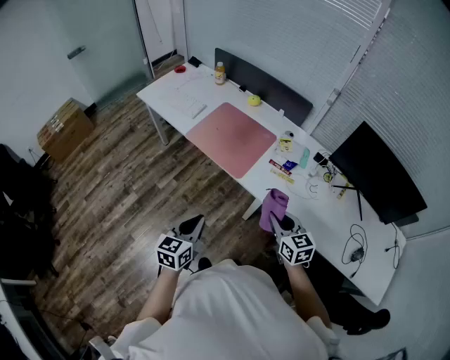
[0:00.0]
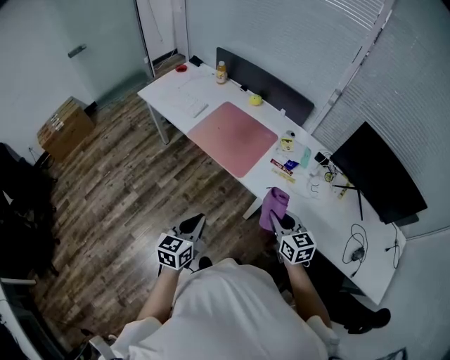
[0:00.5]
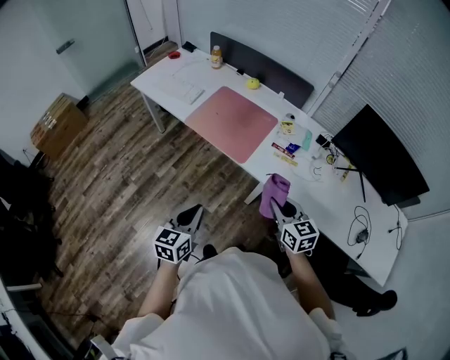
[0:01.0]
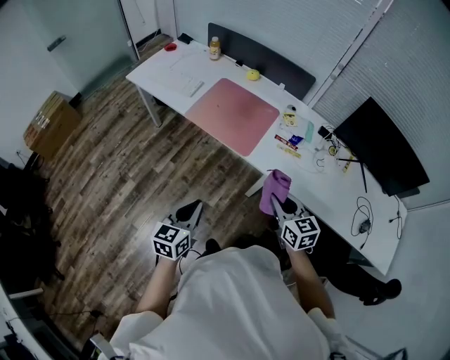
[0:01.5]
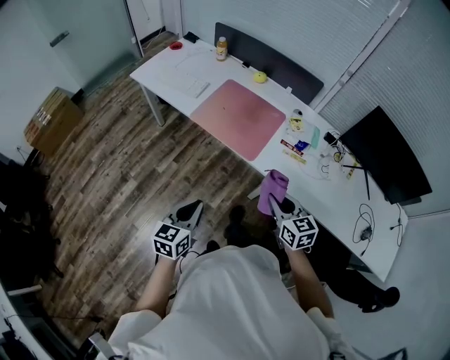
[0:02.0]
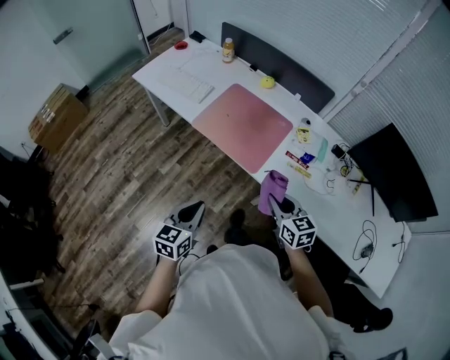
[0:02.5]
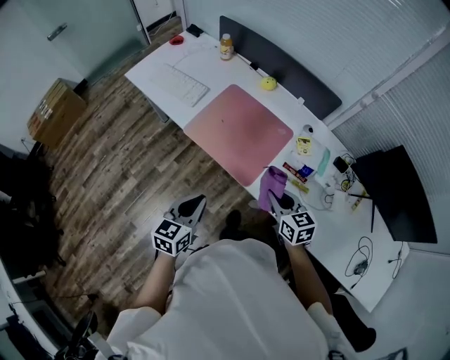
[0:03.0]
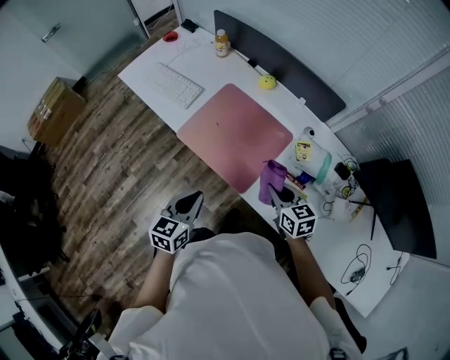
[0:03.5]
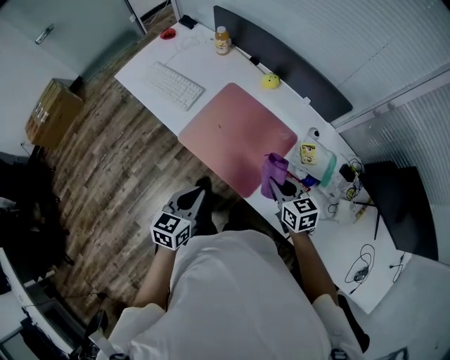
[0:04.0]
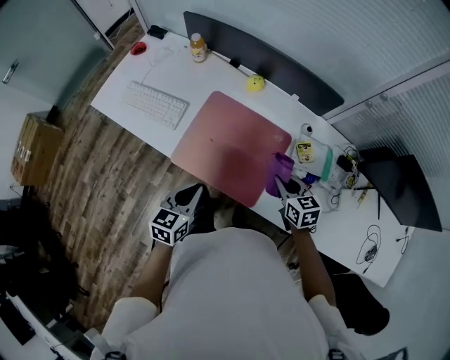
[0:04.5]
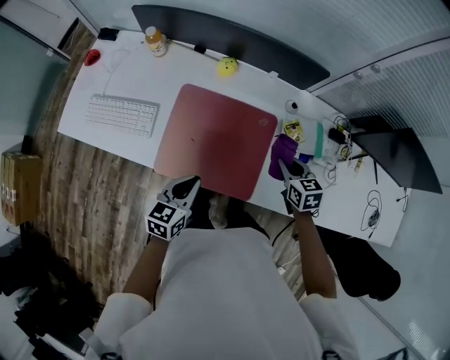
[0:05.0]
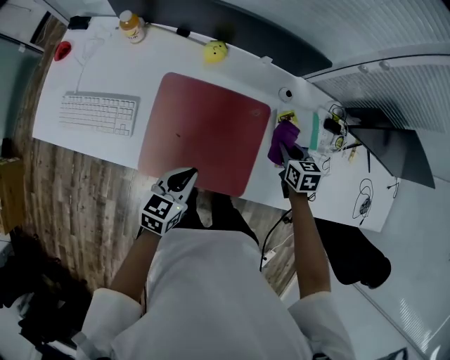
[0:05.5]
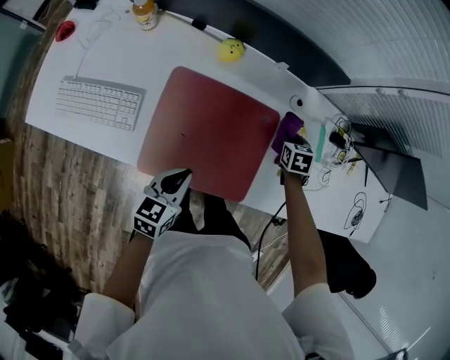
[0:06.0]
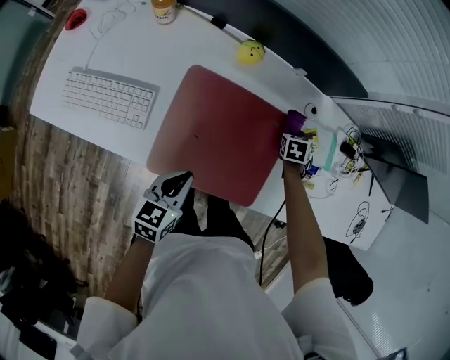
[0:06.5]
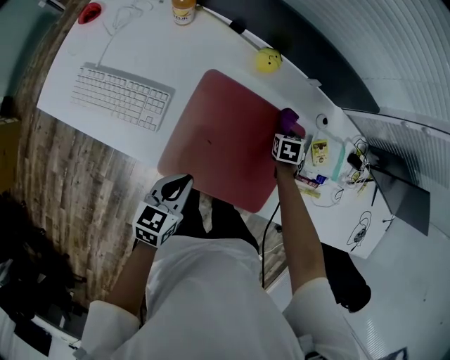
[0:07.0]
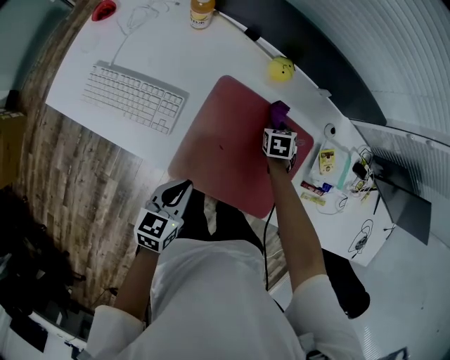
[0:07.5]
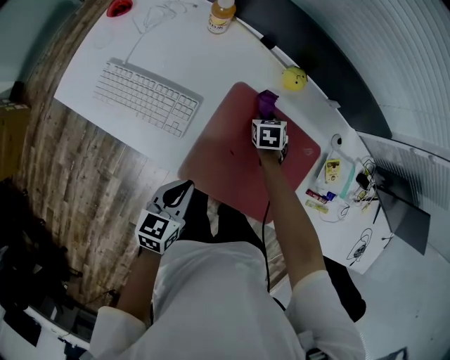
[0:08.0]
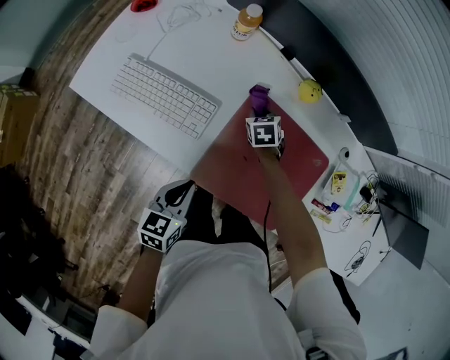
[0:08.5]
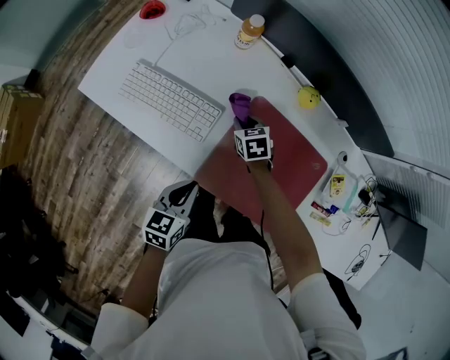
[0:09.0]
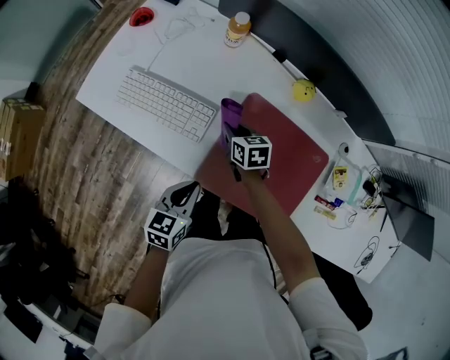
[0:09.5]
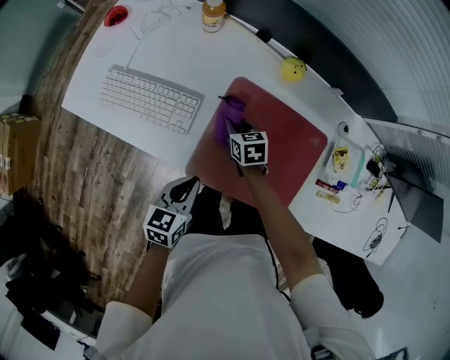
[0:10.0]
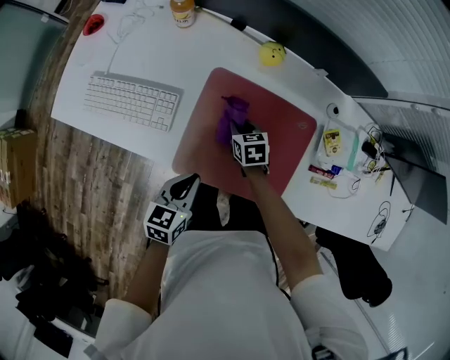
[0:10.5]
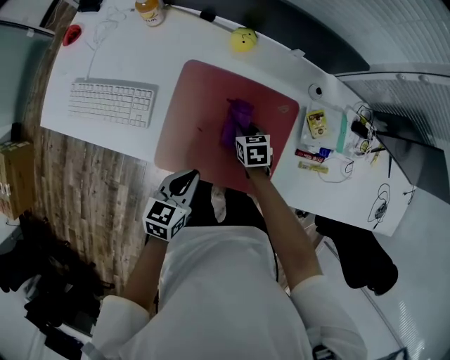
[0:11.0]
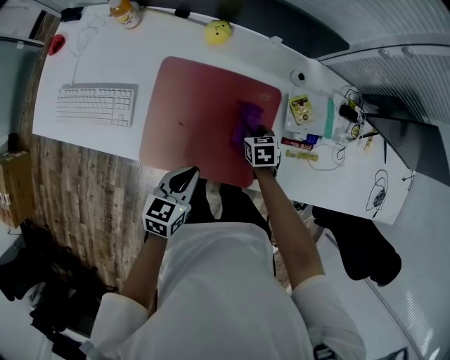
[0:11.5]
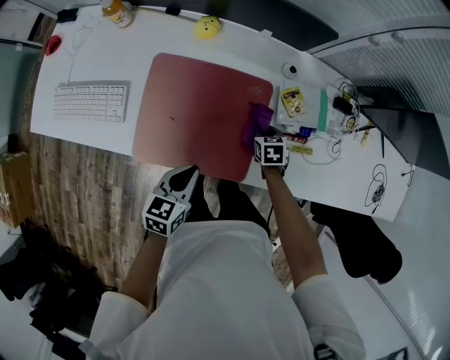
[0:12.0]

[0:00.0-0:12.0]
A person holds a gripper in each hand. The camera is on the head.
0:00.0 to 0:02.0: Both grippers move to the left, approximately 10 cm.
0:02.0 to 0:04.0: Both grippers move forward, roughly 30 cm.
0:04.0 to 0:06.0: The right gripper shifts by approximately 25 cm, and changes its angle by some 50 degrees, while the left gripper shifts by roughly 20 cm, and swivels approximately 30 degrees.
0:06.0 to 0:08.0: The left gripper shifts by about 15 cm, while the right gripper moves some 30 cm.
0:08.0 to 0:10.0: The right gripper goes roughly 15 cm to the left and backward, and swivels roughly 20 degrees.
0:10.0 to 0:12.0: The left gripper heads to the right, covering about 20 cm. The right gripper is displaced to the right by roughly 35 cm, and turns by approximately 20 degrees.

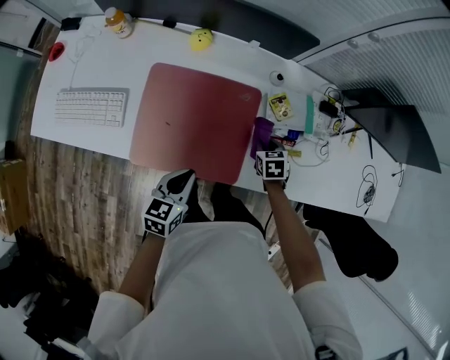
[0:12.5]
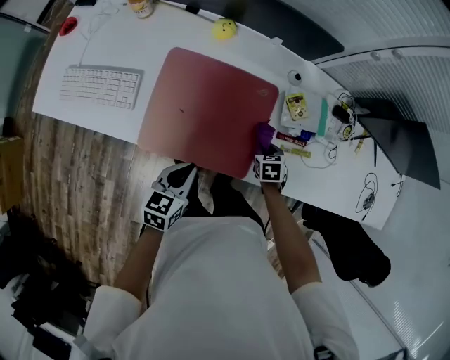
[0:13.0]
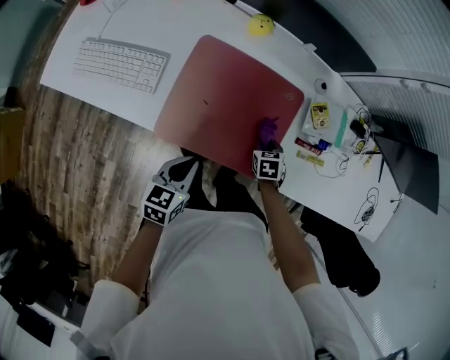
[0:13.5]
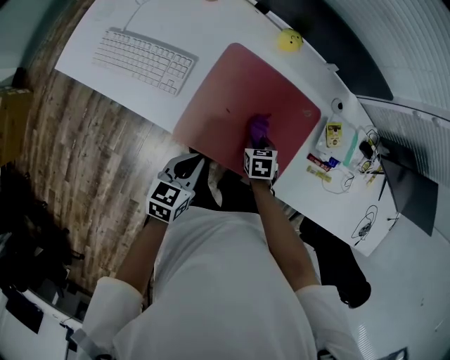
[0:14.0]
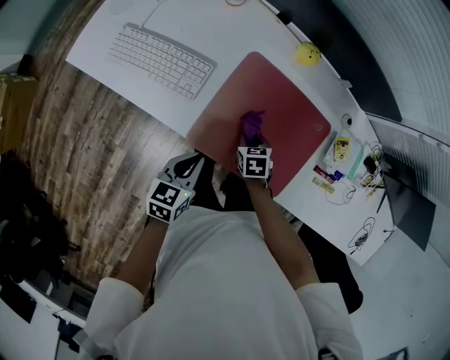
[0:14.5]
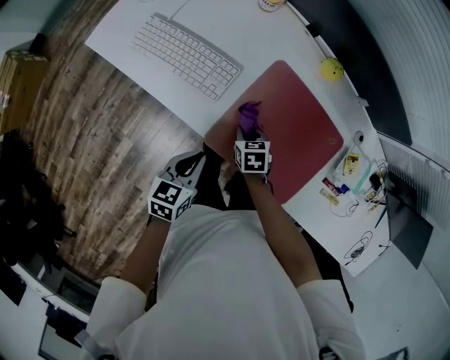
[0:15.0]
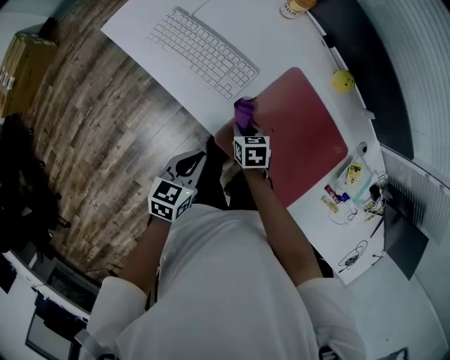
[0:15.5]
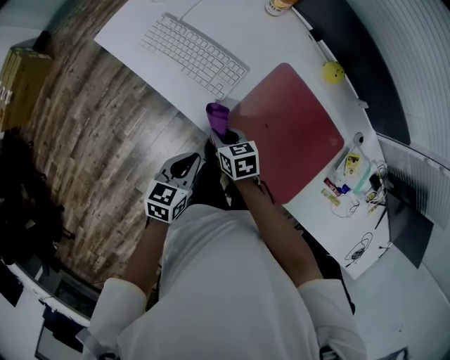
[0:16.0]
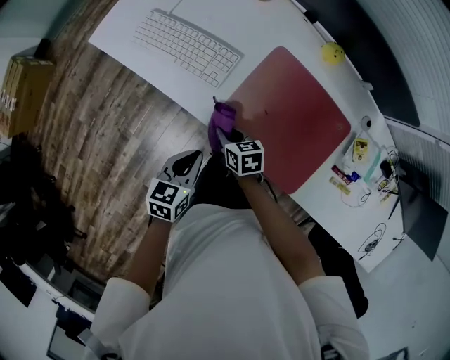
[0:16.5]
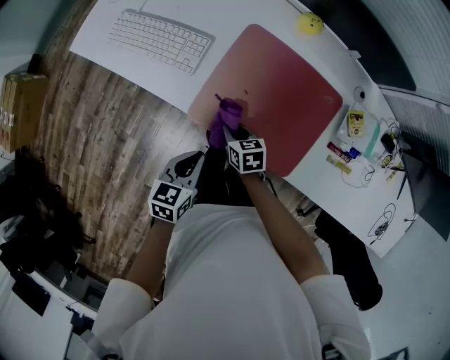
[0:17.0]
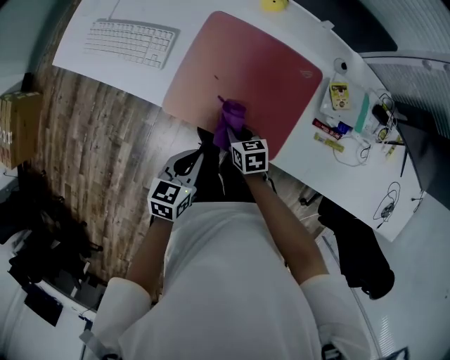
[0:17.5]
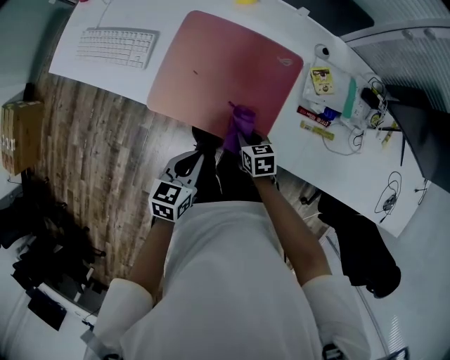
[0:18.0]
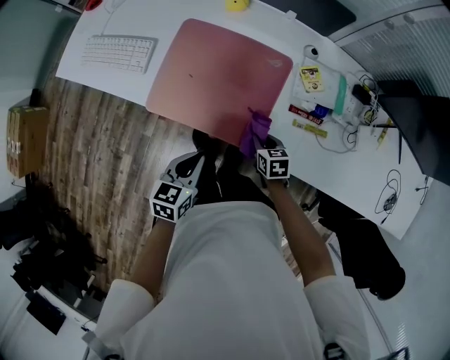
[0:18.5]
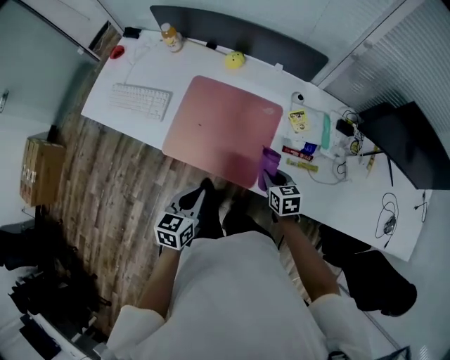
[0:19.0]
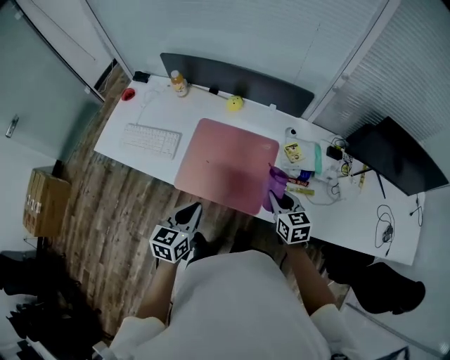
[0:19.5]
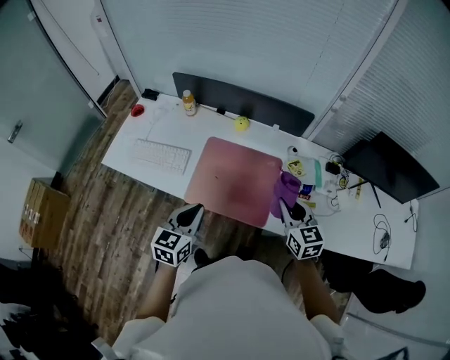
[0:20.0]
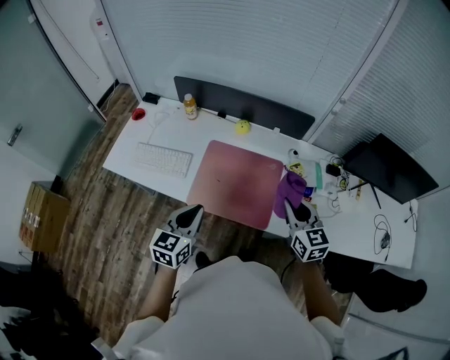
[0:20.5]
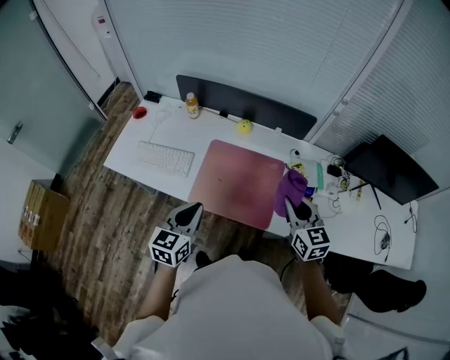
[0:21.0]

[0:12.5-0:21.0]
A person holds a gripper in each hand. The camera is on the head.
0:12.5 to 0:14.5: The left gripper is displaced to the left by roughly 20 cm, while the right gripper shifts about 30 cm to the left.
0:14.5 to 0:16.5: The left gripper heads to the left, covering some 5 cm, while the right gripper heads to the left, covering about 15 cm, and changes its angle by approximately 30 degrees.
0:16.5 to 0:19.0: The right gripper is displaced to the right by approximately 40 cm, and changes its angle by roughly 20 degrees, while the left gripper goes approximately 25 cm to the right and backward.
0:19.0 to 0:21.0: The left gripper is displaced upward and to the left by roughly 20 cm. Meanwhile the right gripper heads upward, covering some 30 cm, and changes its angle by some 30 degrees.

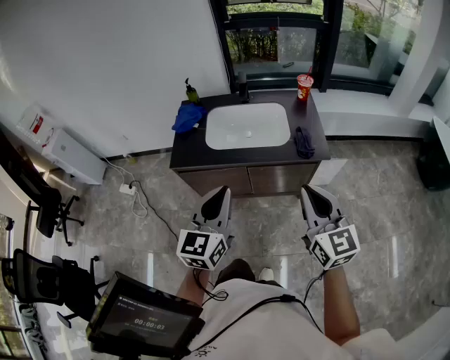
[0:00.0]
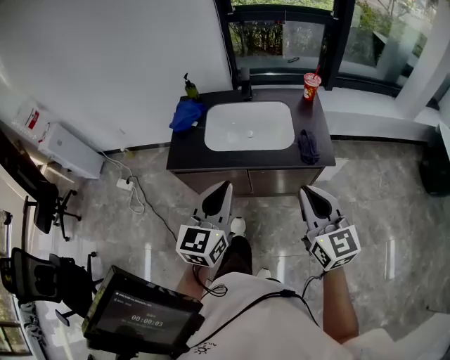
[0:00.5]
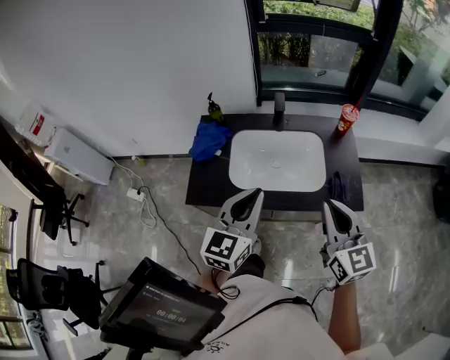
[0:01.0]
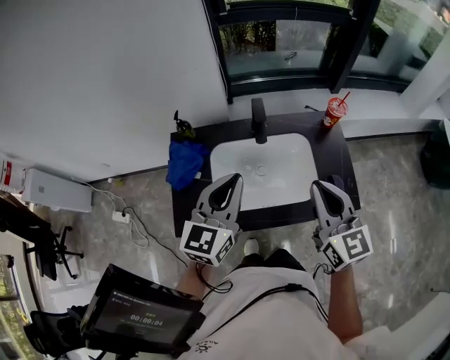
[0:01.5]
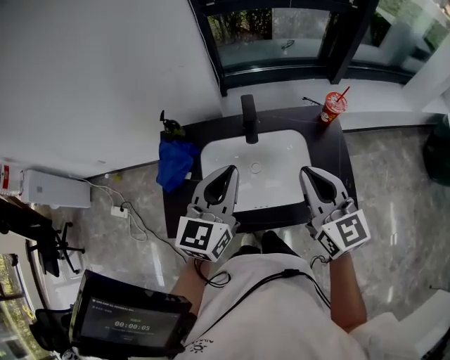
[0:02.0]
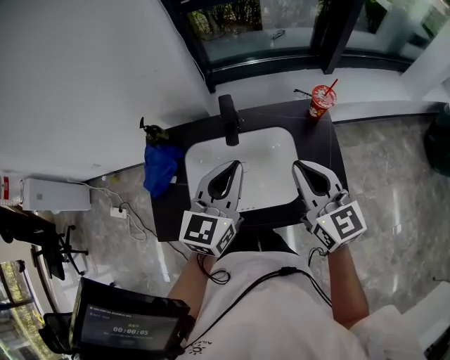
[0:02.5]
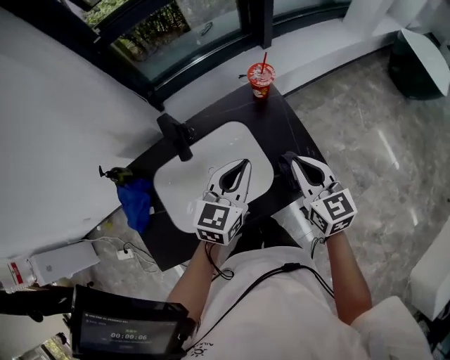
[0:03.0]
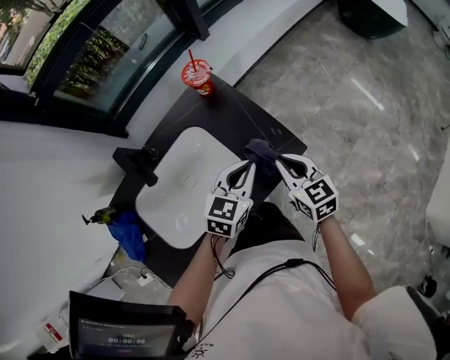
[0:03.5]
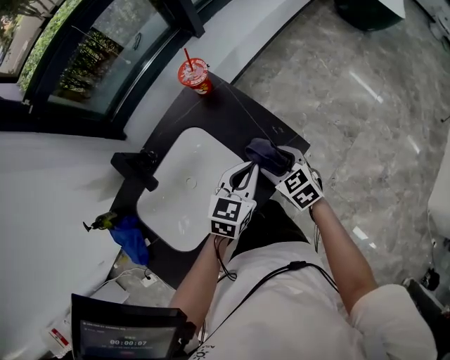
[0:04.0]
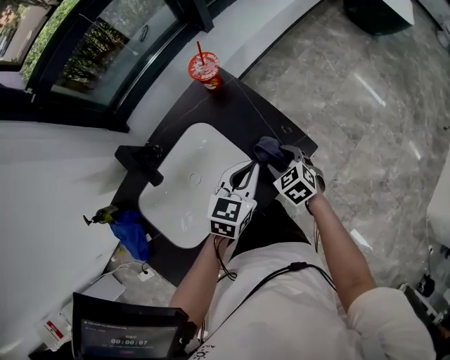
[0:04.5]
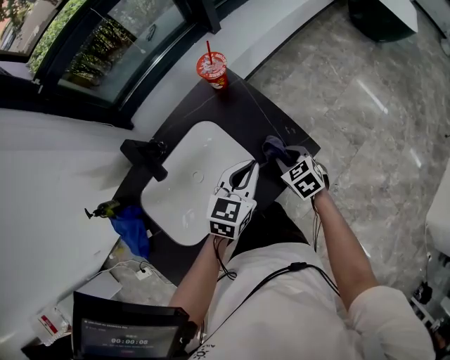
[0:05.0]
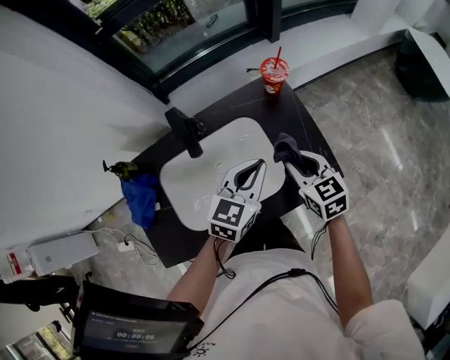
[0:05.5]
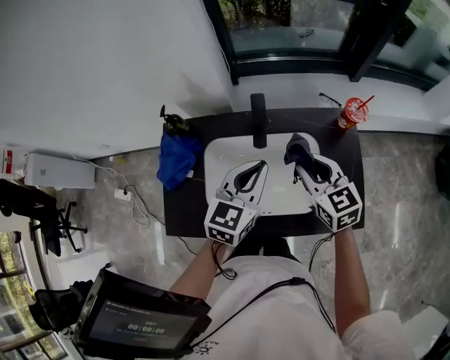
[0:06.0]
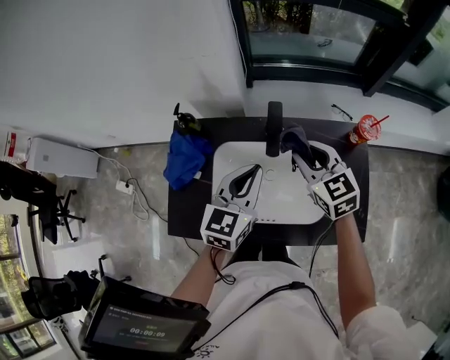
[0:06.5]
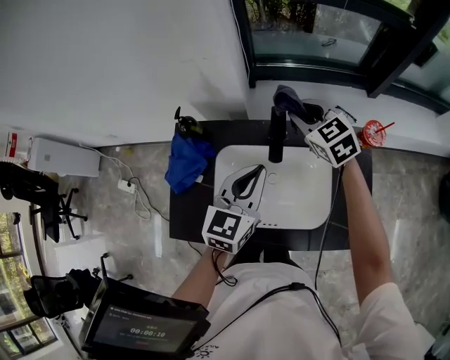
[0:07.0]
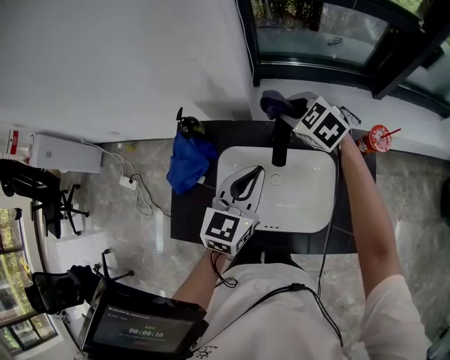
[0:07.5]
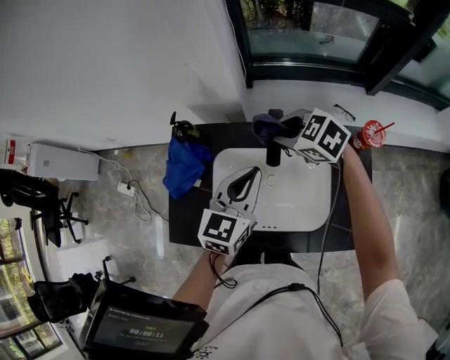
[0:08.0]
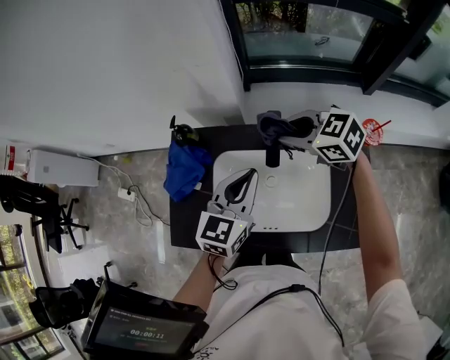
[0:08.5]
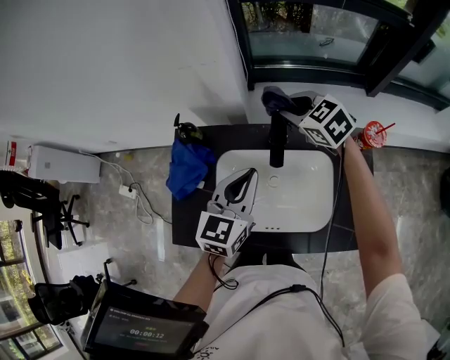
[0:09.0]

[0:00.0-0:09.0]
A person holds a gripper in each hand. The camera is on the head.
0:00.0 to 0:02.0: The grippers both shift forward by approximately 40 cm.
0:02.0 to 0:04.5: The left gripper ends up some 35 cm from where it was, and turns by approximately 50 degrees. The right gripper goes about 30 cm downward, tilts its fingers about 50 degrees downward, and opens its fingers.
0:04.5 to 0:07.0: The right gripper shifts by about 40 cm, swivels approximately 50 degrees, and closes up. Meanwhile the left gripper moves some 30 cm, and rotates some 50 degrees.
